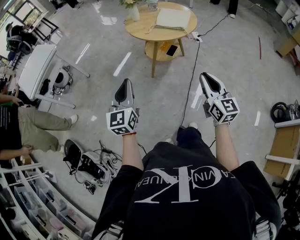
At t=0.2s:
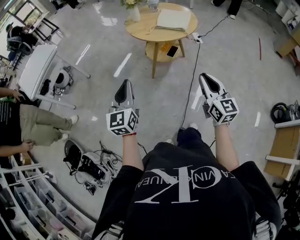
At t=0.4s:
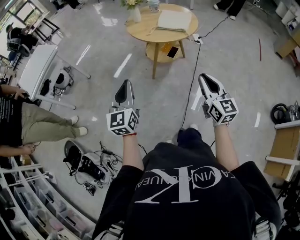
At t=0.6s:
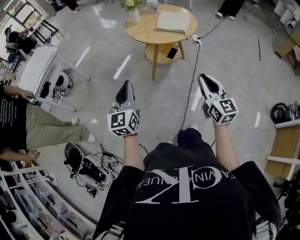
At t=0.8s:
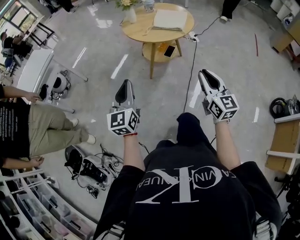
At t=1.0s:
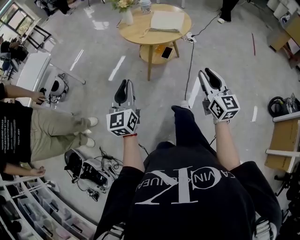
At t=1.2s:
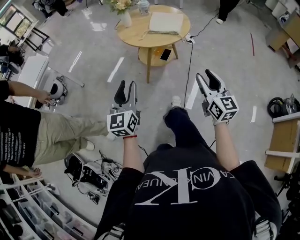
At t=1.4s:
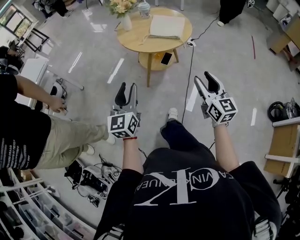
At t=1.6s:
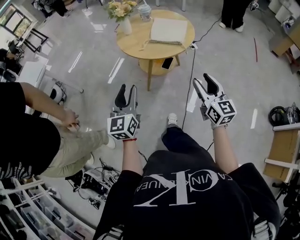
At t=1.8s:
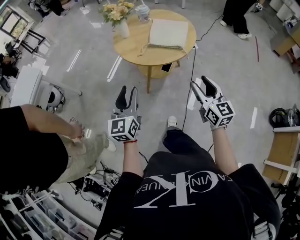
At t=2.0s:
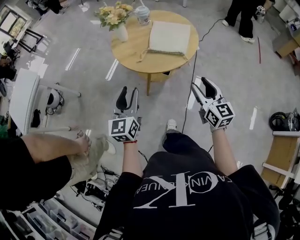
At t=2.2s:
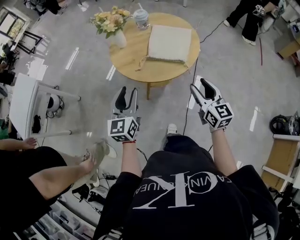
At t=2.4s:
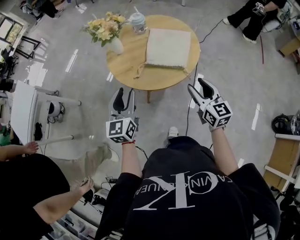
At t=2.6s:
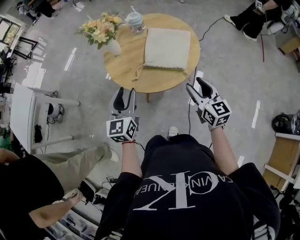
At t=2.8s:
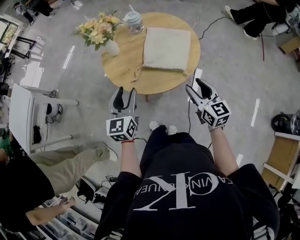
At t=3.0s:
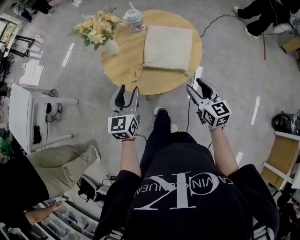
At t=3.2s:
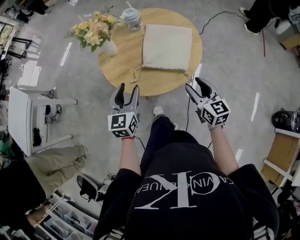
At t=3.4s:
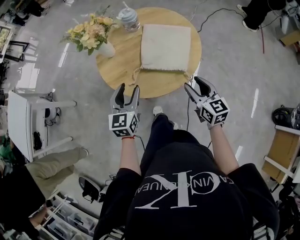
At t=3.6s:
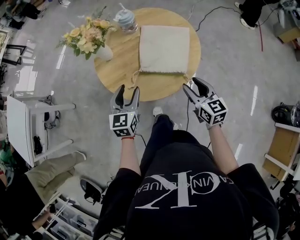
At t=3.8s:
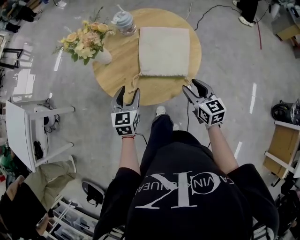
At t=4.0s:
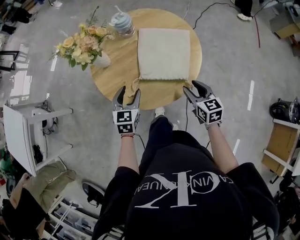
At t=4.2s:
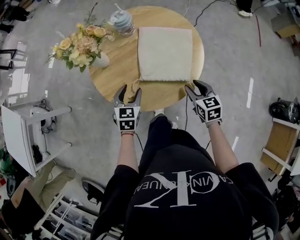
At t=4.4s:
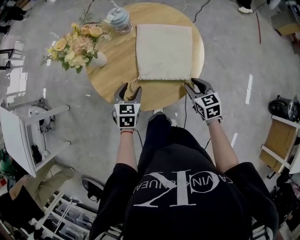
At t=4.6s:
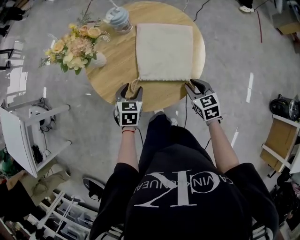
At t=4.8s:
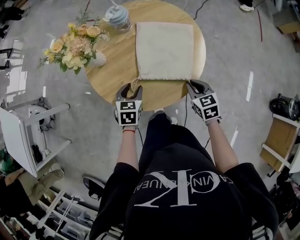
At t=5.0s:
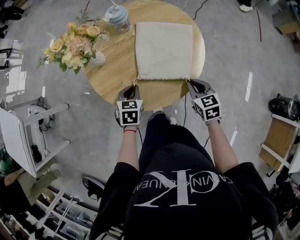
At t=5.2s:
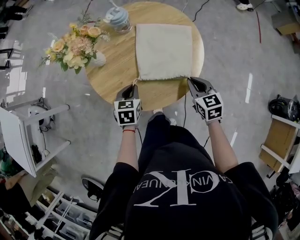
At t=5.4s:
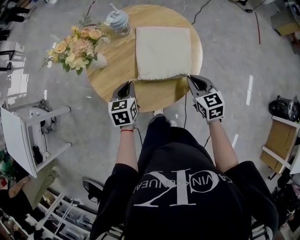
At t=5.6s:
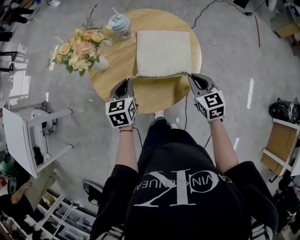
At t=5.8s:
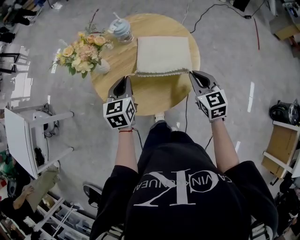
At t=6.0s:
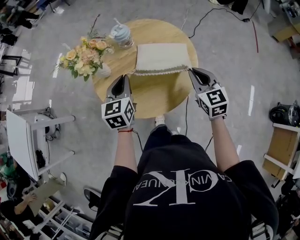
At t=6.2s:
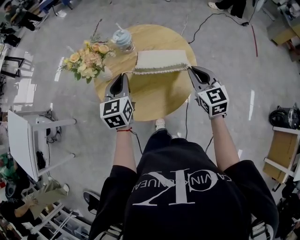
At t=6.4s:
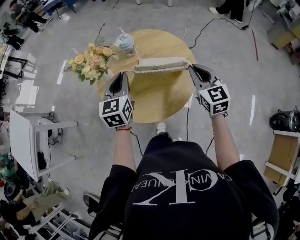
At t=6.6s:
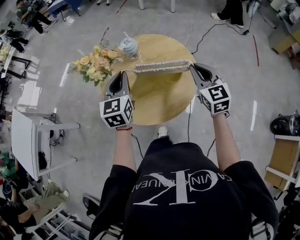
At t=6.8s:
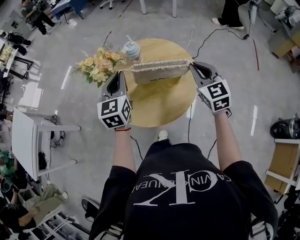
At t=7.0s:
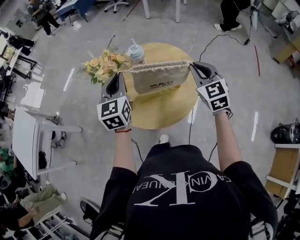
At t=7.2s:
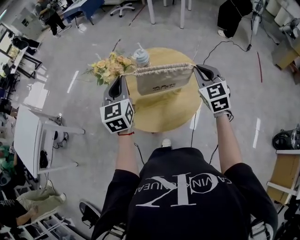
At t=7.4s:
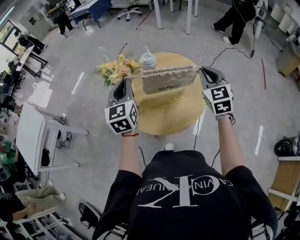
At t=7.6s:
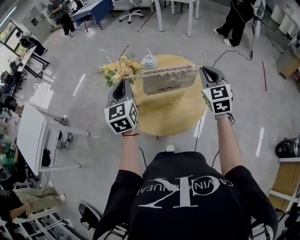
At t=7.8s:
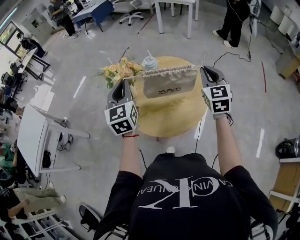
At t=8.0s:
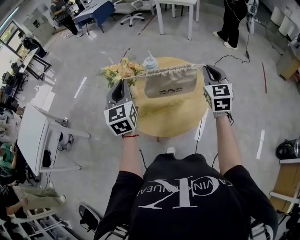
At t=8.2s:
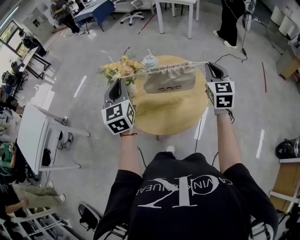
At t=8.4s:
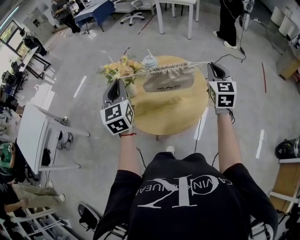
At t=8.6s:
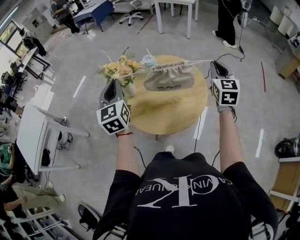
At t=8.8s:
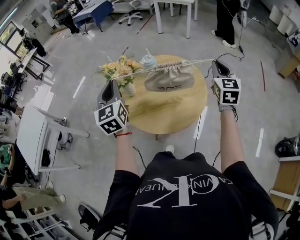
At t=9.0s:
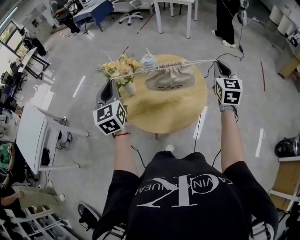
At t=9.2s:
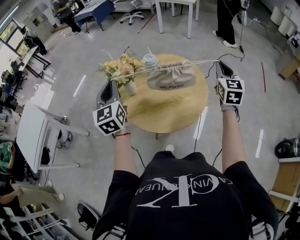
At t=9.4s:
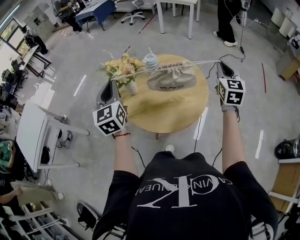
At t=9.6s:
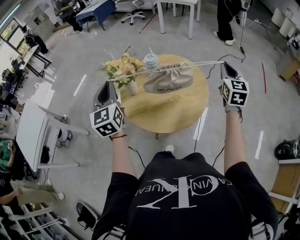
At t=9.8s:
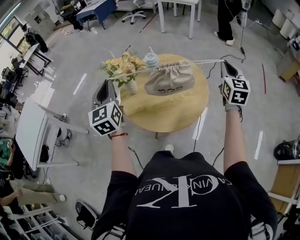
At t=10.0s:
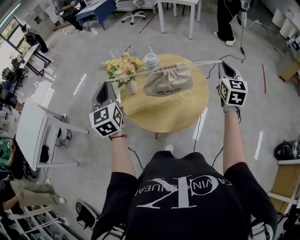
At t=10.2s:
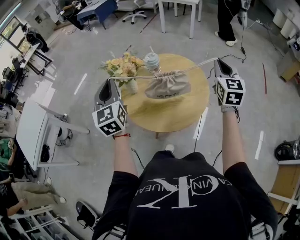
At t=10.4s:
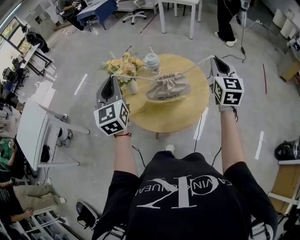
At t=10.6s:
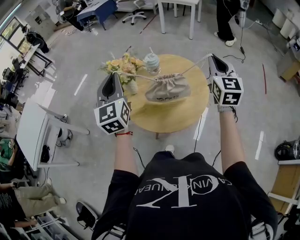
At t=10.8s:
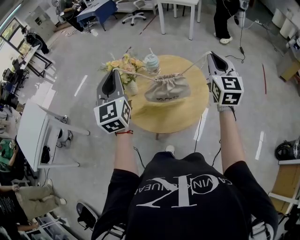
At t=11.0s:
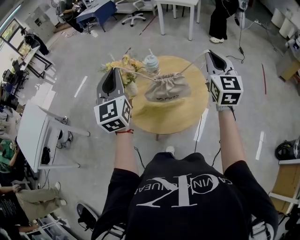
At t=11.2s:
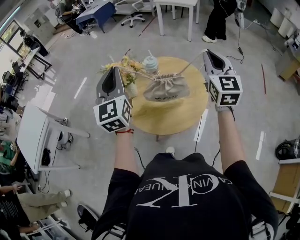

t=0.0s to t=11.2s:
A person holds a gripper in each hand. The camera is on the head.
t=0.0s to t=1.6s: Both grippers travel together forward, approximately 15 cm. The right gripper opens up. The left gripper opens.
t=1.6s to t=3.2s: Both grippers move forward, roughly 30 cm.
t=3.2s to t=4.8s: Both grippers travel together downward and forward, about 15 cm. The left gripper tilts its fingers some 30 degrees downward. The right gripper changes its angle by about 30 degrees, and closes its fingers.
t=4.8s to t=6.4s: Both grippers travel together upward, some 20 cm. The right gripper turns by approximately 30 degrees, while the left gripper tilts its fingers roughly 30 degrees upward, and closes.
t=6.4s to t=8.0s: The right gripper heads upward, covering some 10 cm. The left gripper heads upward and to the left, covering about 15 cm.
t=8.0s to t=9.6s: The left gripper shifts approximately 5 cm to the left; the right gripper travels to the right by about 10 cm.
t=9.6s to t=11.2s: The right gripper travels to the left and upward by some 15 cm, while the left gripper travels upward and to the right by approximately 10 cm.

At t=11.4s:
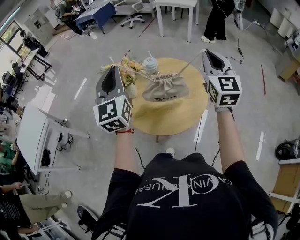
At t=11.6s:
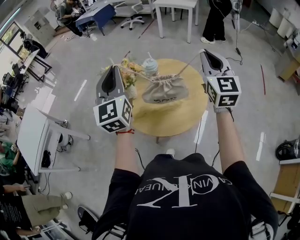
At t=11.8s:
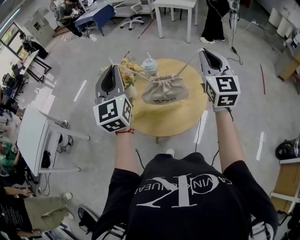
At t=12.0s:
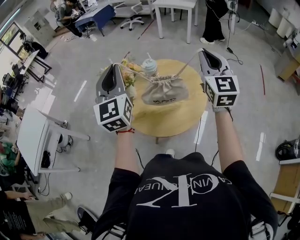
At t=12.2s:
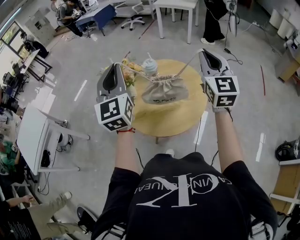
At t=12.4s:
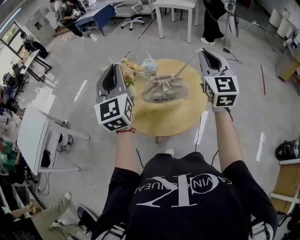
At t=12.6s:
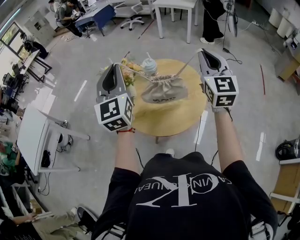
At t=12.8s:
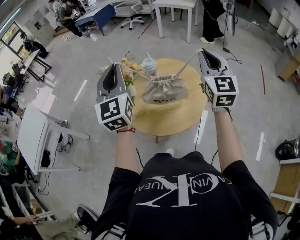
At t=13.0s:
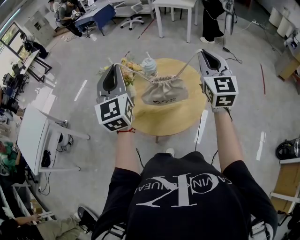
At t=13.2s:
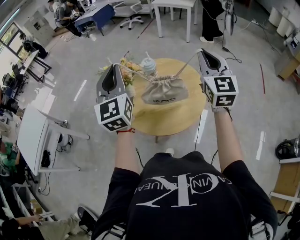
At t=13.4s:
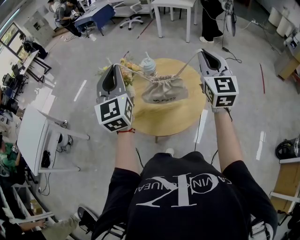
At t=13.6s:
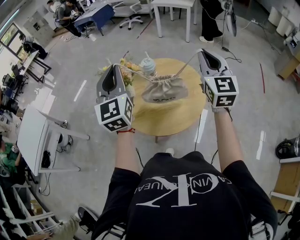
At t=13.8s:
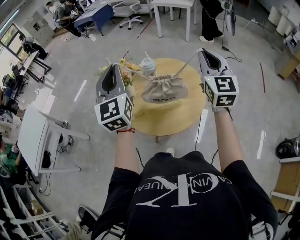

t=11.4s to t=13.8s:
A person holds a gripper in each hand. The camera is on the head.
t=11.4s to t=12.6s: The grippers stay close to where they were, moving slightly.
t=12.6s to t=13.8s: Both grippers stay put.

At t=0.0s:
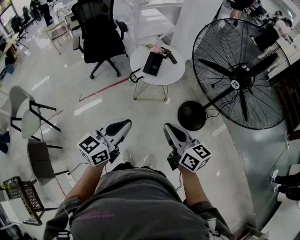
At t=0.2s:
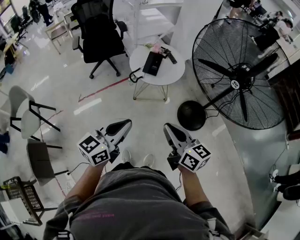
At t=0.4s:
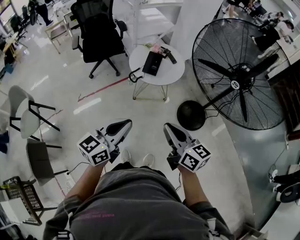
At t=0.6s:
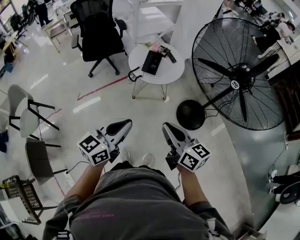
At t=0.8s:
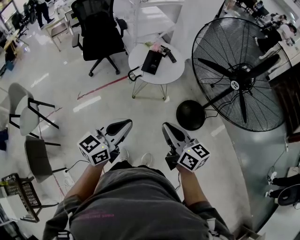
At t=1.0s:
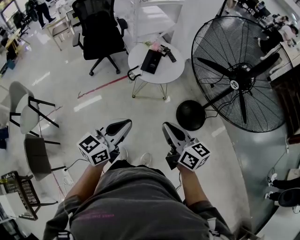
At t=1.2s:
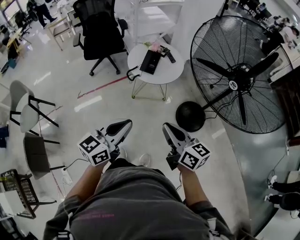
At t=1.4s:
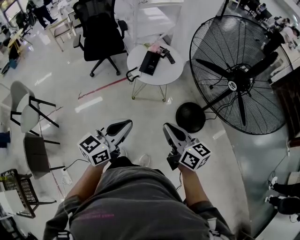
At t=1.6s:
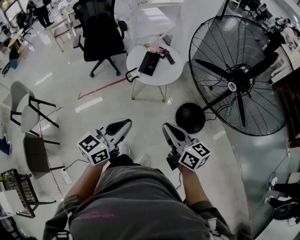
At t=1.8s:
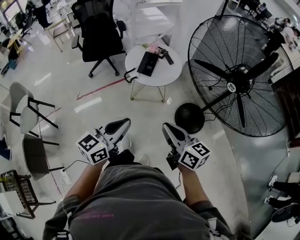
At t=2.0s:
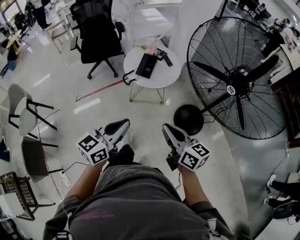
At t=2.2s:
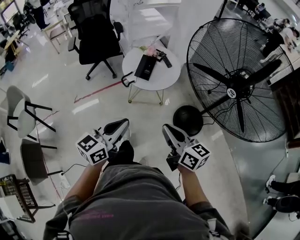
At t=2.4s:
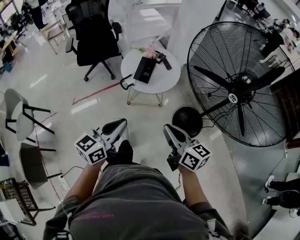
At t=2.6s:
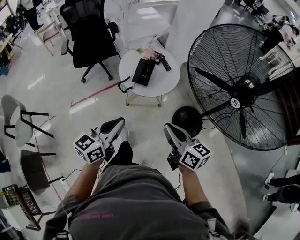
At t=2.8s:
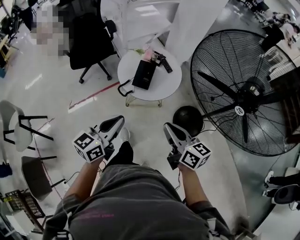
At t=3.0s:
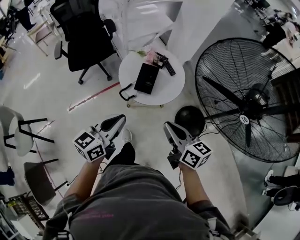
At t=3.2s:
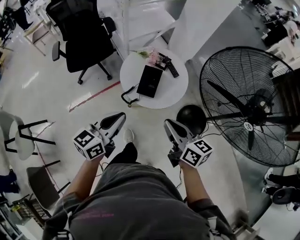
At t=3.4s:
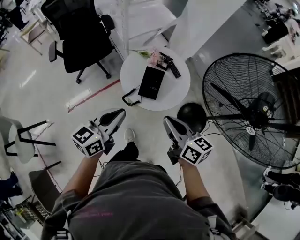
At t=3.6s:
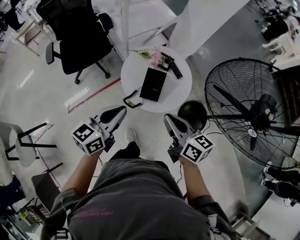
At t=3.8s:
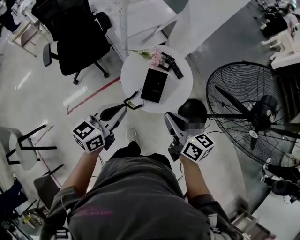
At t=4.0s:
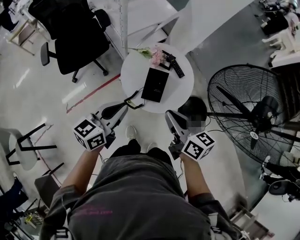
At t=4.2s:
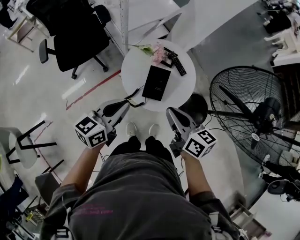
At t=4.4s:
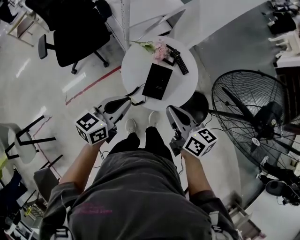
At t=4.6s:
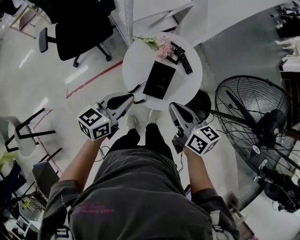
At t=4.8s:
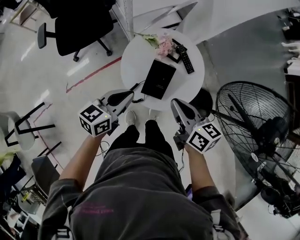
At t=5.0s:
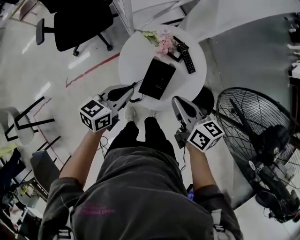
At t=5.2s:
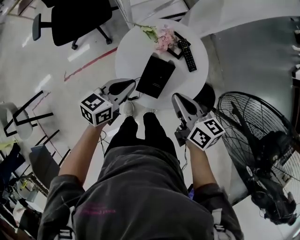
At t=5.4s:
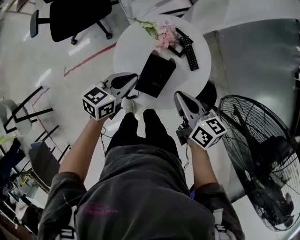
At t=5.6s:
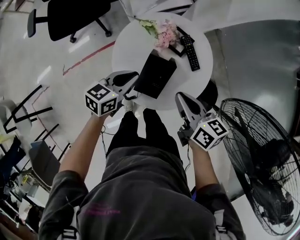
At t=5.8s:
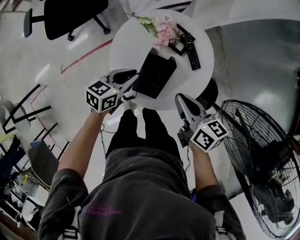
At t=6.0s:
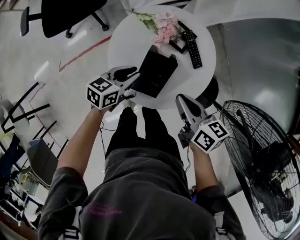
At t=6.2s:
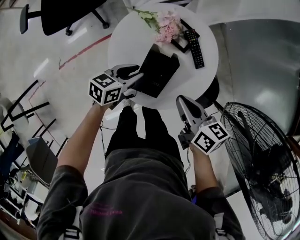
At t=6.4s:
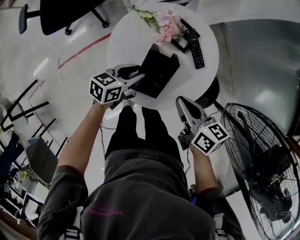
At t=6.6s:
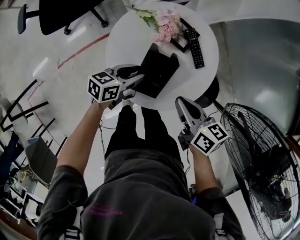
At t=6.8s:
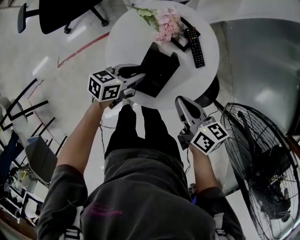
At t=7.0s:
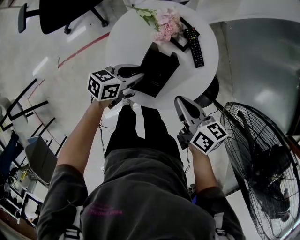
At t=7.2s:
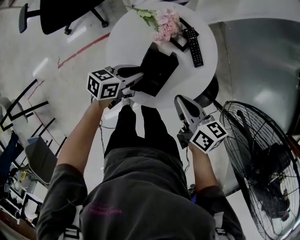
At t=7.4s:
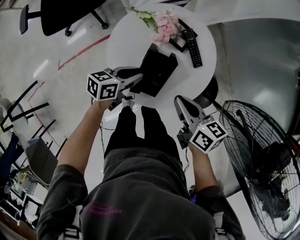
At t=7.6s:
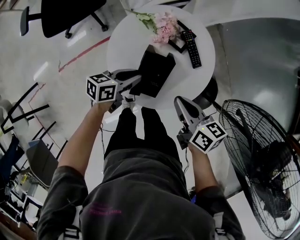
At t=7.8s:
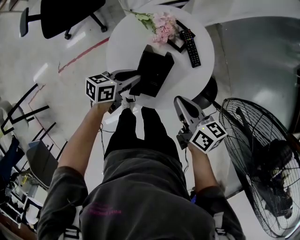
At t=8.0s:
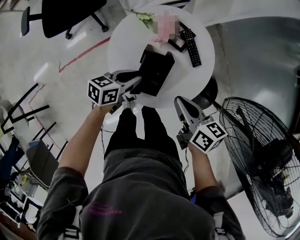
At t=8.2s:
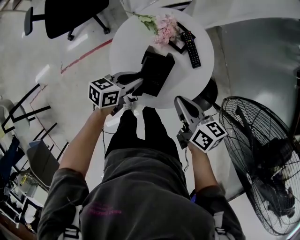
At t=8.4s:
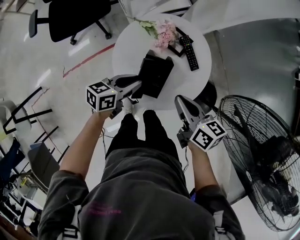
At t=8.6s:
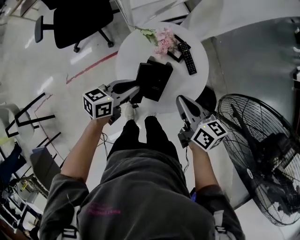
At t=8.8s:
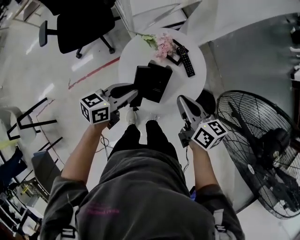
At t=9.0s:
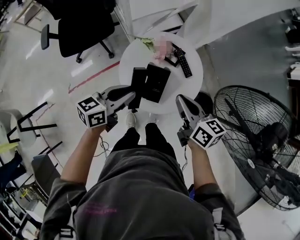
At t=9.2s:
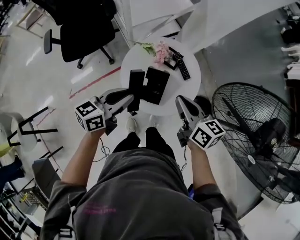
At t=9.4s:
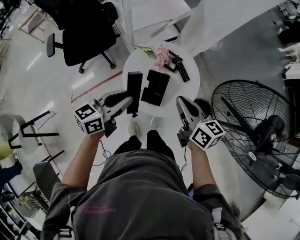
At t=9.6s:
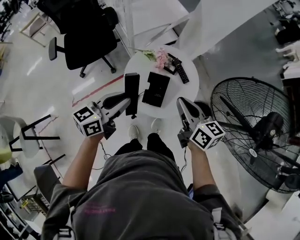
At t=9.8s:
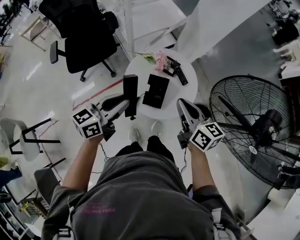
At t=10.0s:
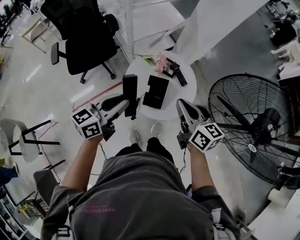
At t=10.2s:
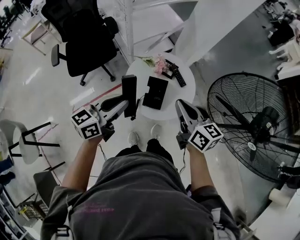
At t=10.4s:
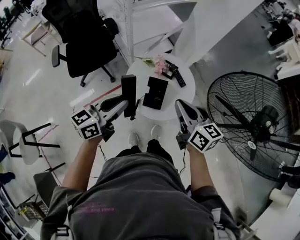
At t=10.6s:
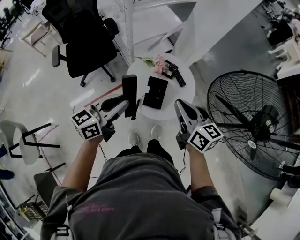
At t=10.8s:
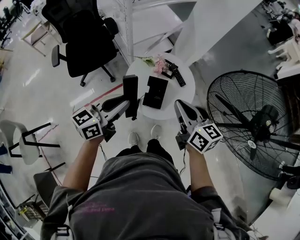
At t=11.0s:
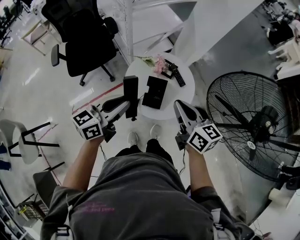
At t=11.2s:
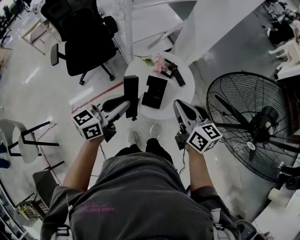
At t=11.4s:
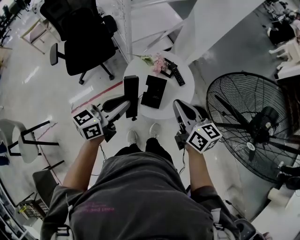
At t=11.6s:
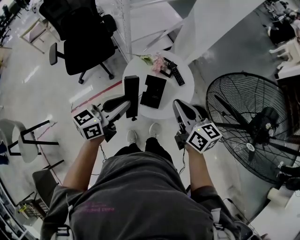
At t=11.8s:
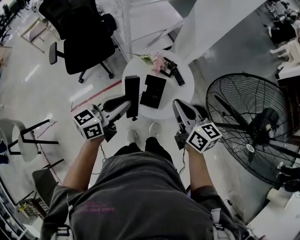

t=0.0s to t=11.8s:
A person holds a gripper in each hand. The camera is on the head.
t=0.0s to t=1.4s: The grippers both shift to the right by roughly 5 cm.
t=1.4s to t=3.0s: The grippers both shift forward by about 25 cm.
t=3.0s to t=4.4s: The left gripper moves forward, roughly 20 cm, while the right gripper goes about 20 cm forward and to the left.
t=4.4s to t=6.0s: The left gripper heads downward and forward, covering about 30 cm, and swivels some 20 degrees. The right gripper goes roughly 20 cm downward, forward and to the right.
t=6.0s to t=7.4s: There are only small adjustments of the grippers.
t=7.4s to t=8.8s: The right gripper moves upward, roughly 10 cm. The left gripper goes some 15 cm upward.
t=8.8s to t=10.4s: Both grippers move upward and backward, about 20 cm.
t=10.4s to t=11.8s: There are only small adjustments of the grippers.
